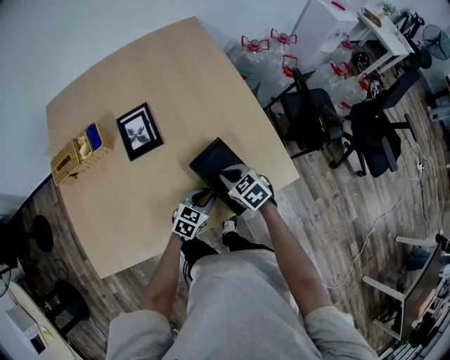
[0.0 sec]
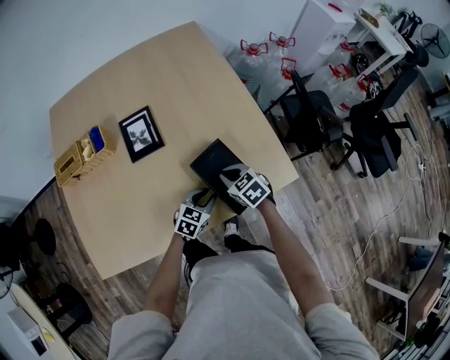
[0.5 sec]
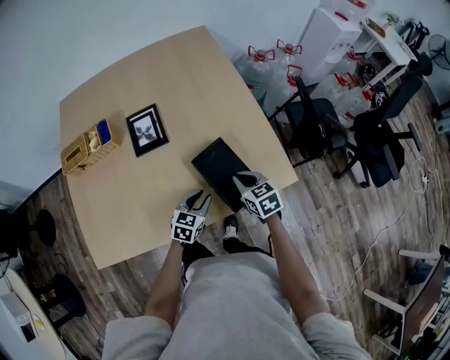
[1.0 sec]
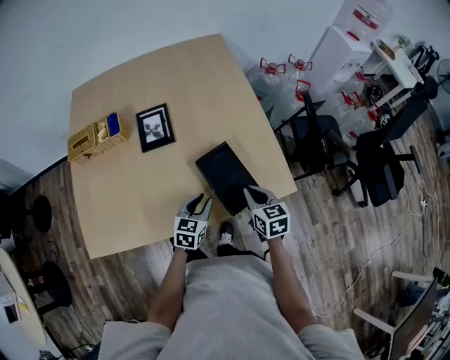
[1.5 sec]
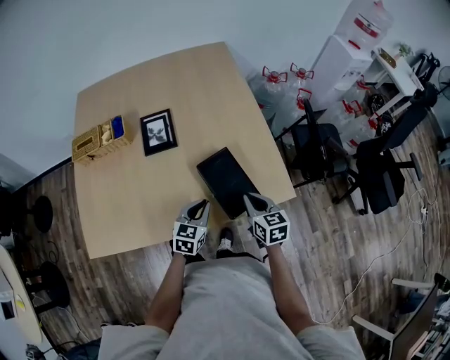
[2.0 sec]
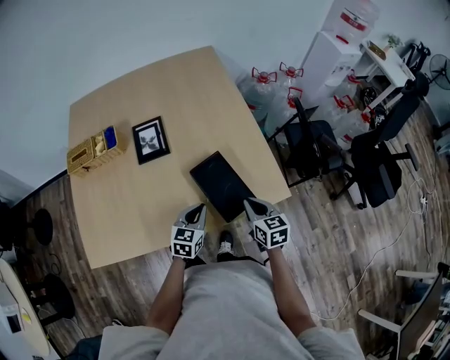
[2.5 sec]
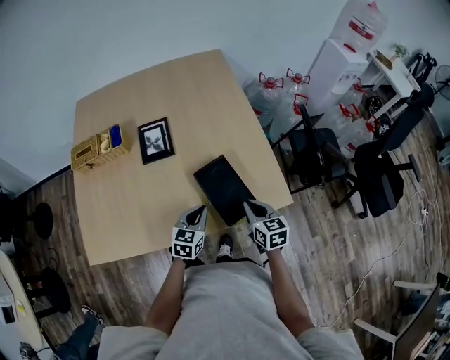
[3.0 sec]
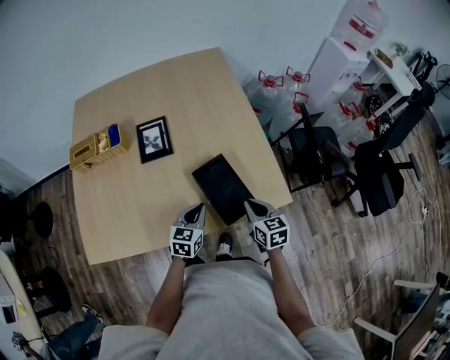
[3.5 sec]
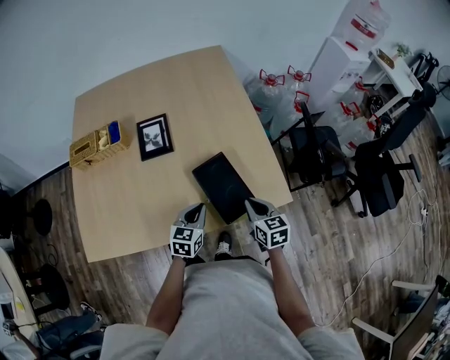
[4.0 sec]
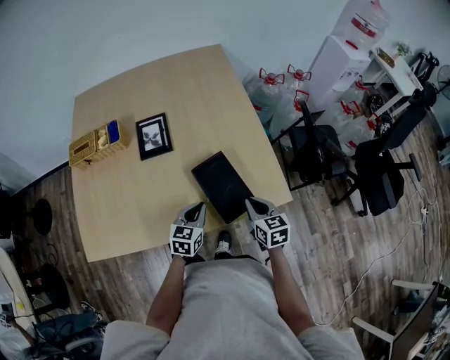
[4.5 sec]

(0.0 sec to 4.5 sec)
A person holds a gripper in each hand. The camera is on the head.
0.0 sec - 2.0 sec: The left gripper moves upward, roughly 10 cm, and rotates about 30 degrees; the right gripper is displaced to the right, backward and upward by some 10 cm, and changes its angle by roughly 30 degrees.
2.0 sec - 4.5 sec: There are only small adjustments of the grippers.

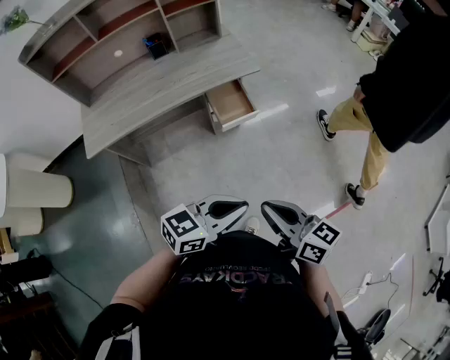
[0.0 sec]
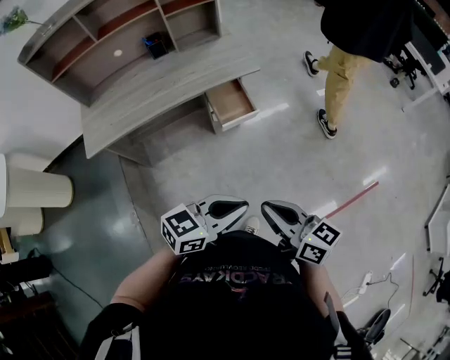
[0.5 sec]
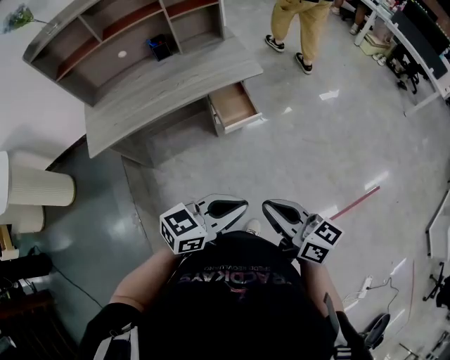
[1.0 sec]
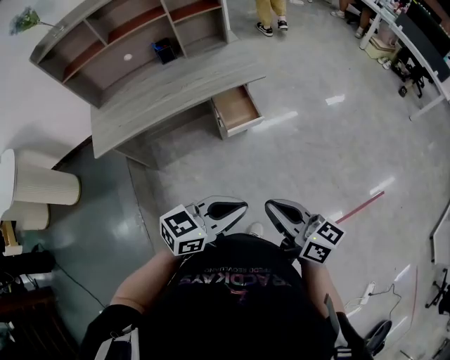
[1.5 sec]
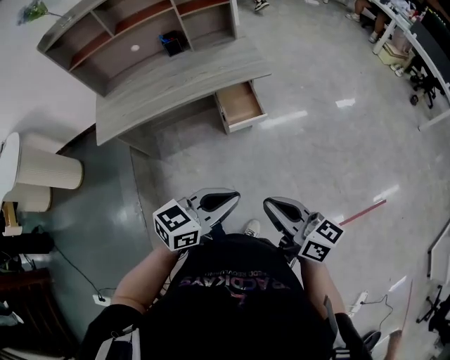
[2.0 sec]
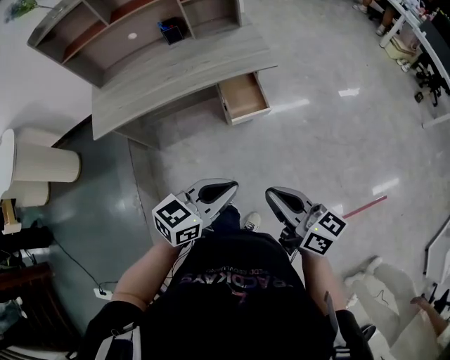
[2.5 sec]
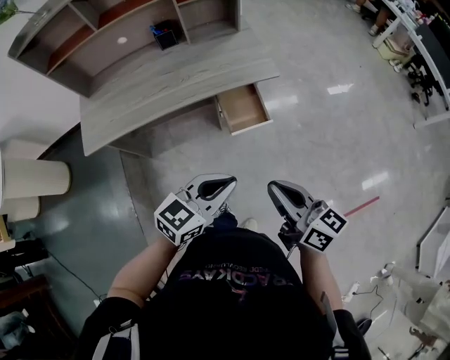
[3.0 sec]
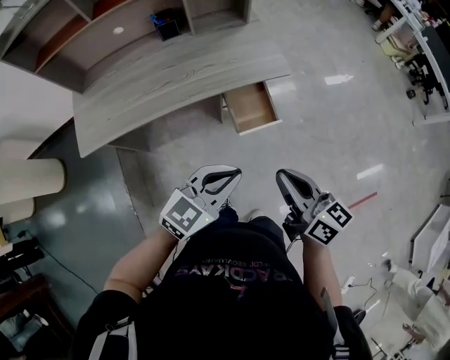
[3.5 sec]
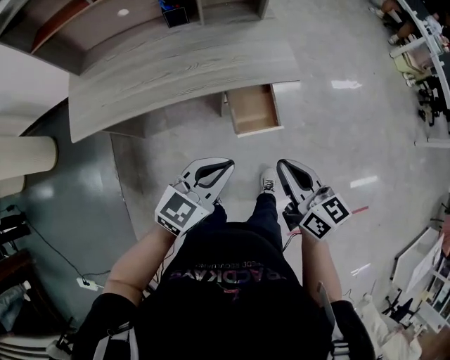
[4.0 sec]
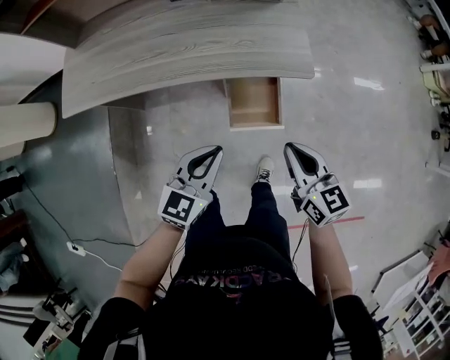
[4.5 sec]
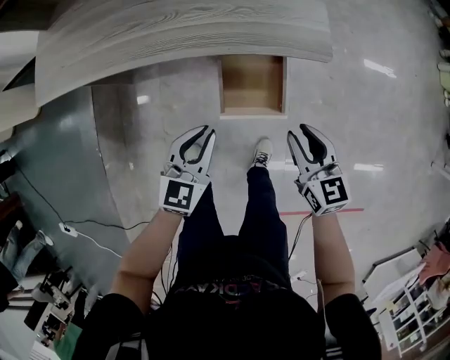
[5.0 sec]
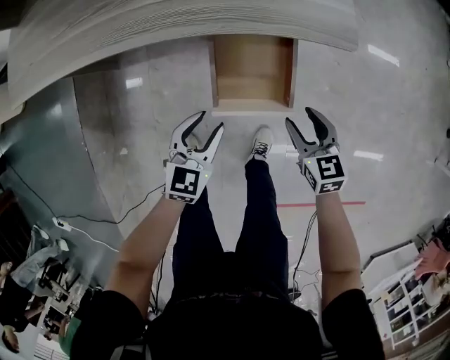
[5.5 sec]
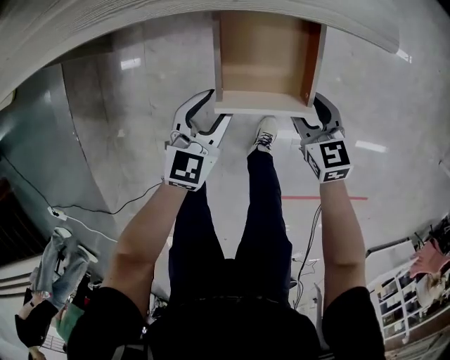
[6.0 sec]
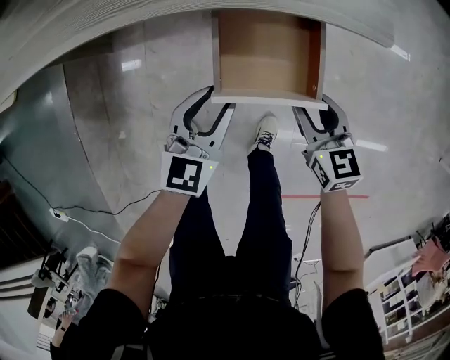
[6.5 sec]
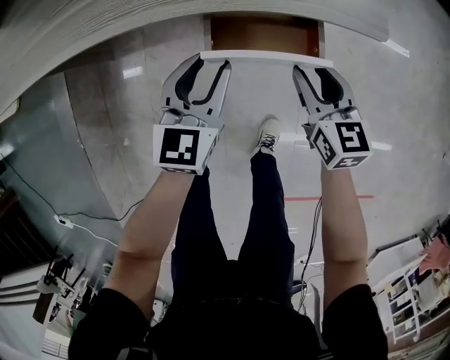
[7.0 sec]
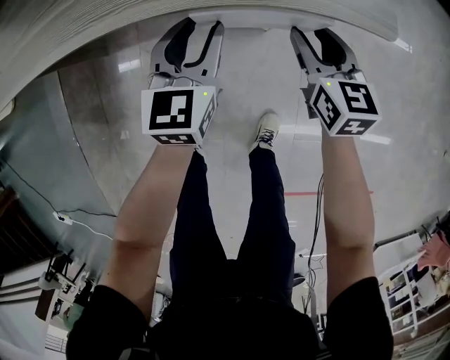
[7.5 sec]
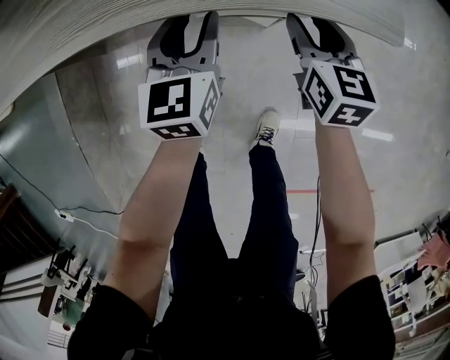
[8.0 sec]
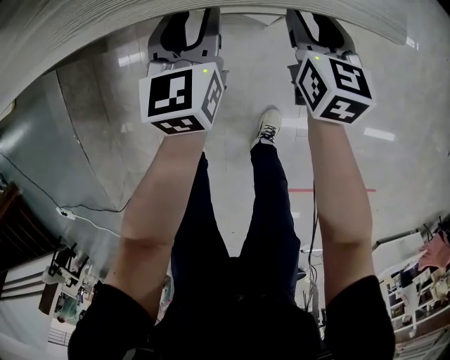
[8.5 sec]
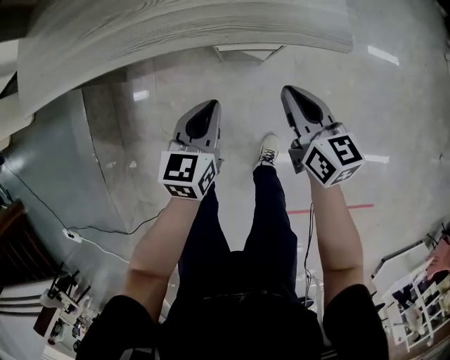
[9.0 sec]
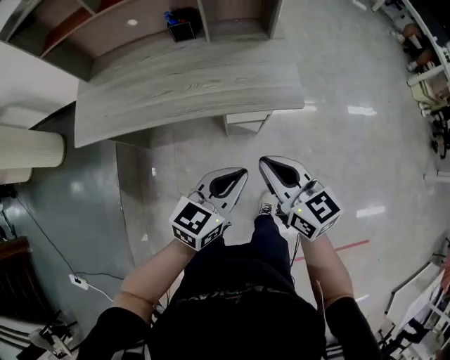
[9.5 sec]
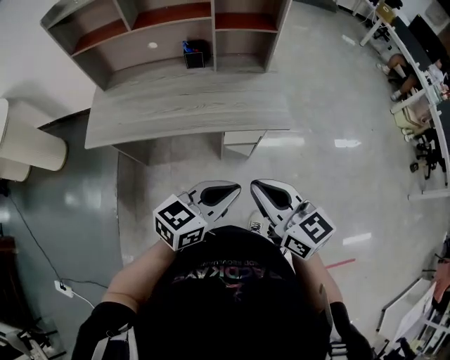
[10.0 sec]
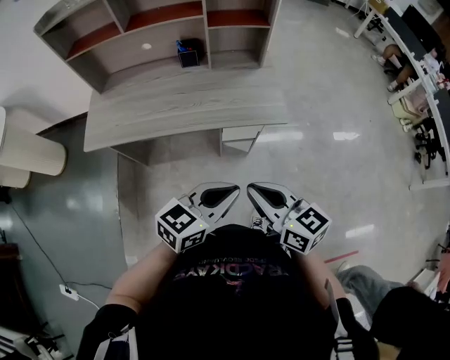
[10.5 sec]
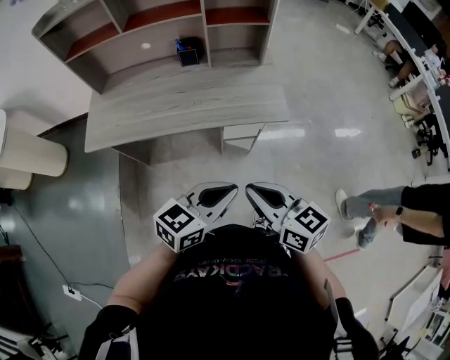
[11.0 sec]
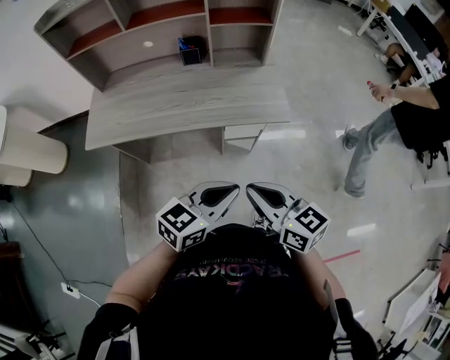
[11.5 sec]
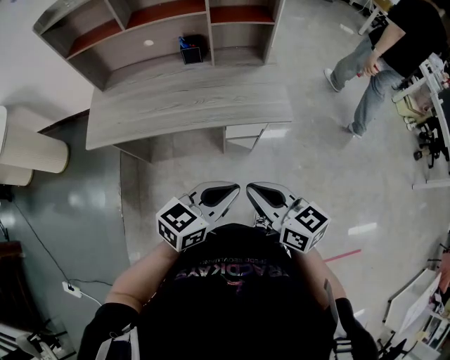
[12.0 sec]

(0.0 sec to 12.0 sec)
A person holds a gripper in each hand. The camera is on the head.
0.0 sec - 2.0 sec: The grippers stay close to where they were, moving slightly.
2.0 sec - 4.0 sec: The left gripper heads forward and to the left, covering some 20 cm. The right gripper moves forward, roughly 20 cm.
4.0 sec - 6.0 sec: Both grippers move downward, some 30 cm. The left gripper turns by some 30 degrees, and opens up. Meanwhile the right gripper swivels roughly 40 degrees, and opens its fingers.
6.0 sec - 8.0 sec: The two grippers go some 15 cm forward. The right gripper swivels approximately 20 degrees. The left gripper turns by about 20 degrees.
8.0 sec - 10.0 sec: Both grippers move upward and backward, about 40 cm. The left gripper changes its angle by about 50 degrees, and closes. The right gripper swivels roughly 30 degrees, and closes.
10.0 sec - 12.0 sec: There are only small adjustments of the grippers.

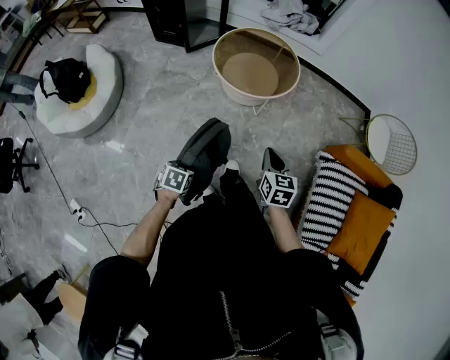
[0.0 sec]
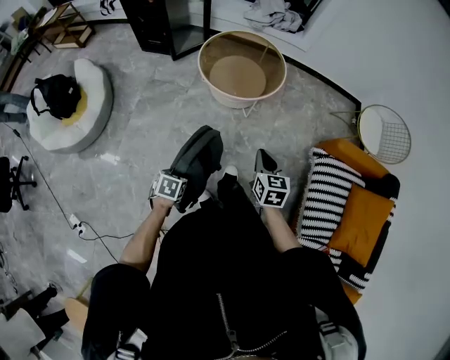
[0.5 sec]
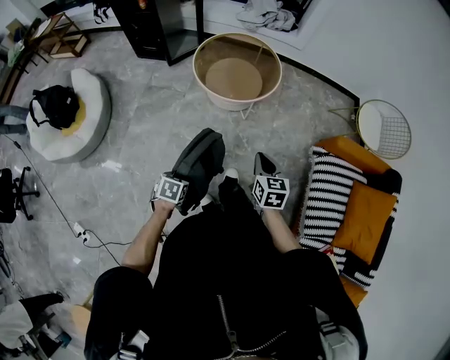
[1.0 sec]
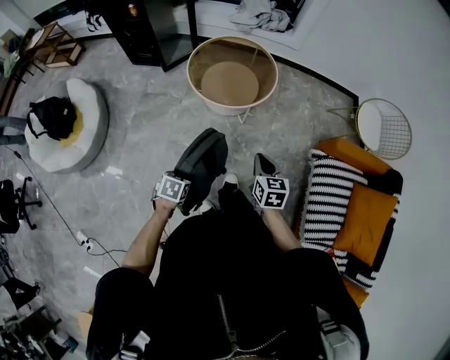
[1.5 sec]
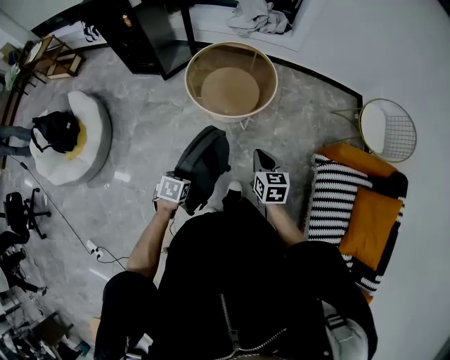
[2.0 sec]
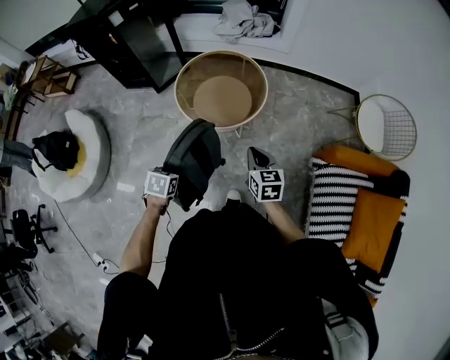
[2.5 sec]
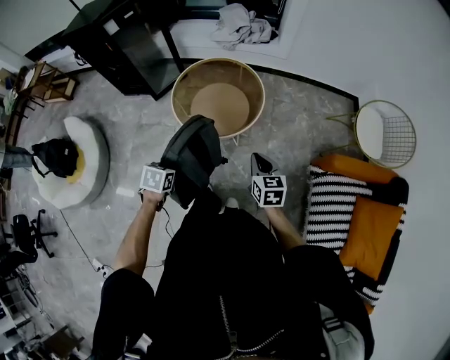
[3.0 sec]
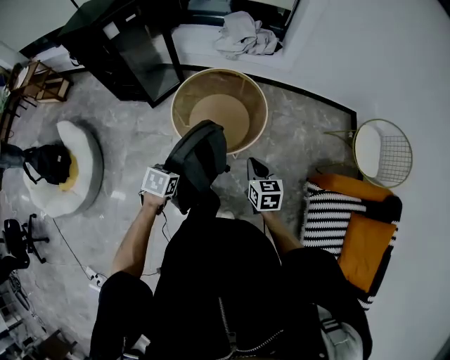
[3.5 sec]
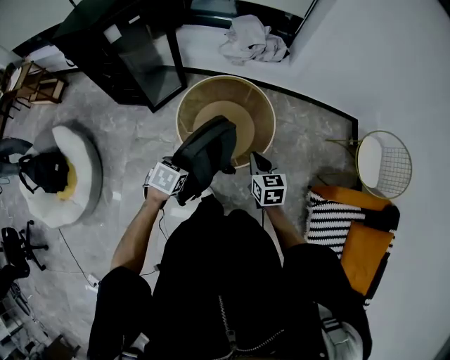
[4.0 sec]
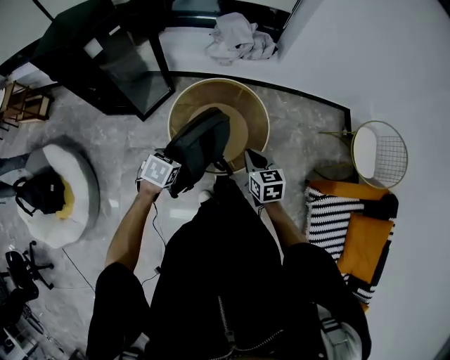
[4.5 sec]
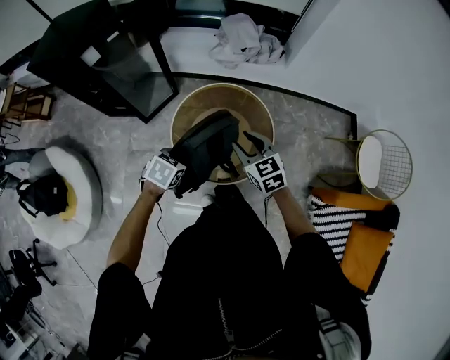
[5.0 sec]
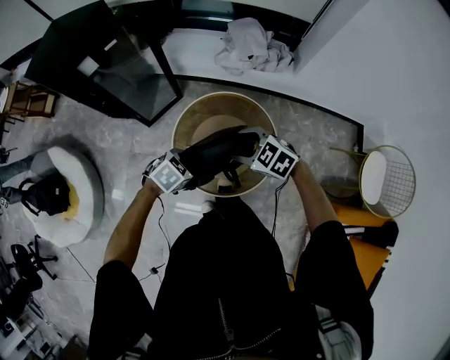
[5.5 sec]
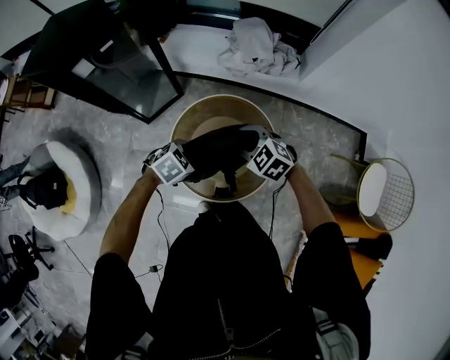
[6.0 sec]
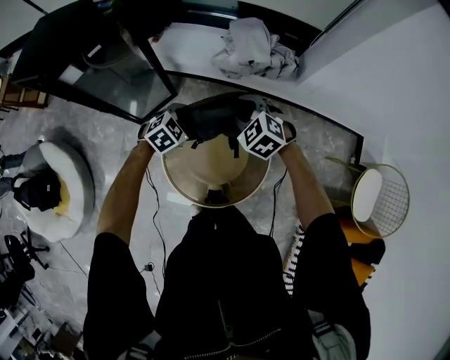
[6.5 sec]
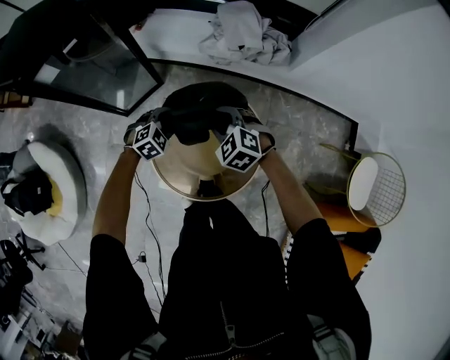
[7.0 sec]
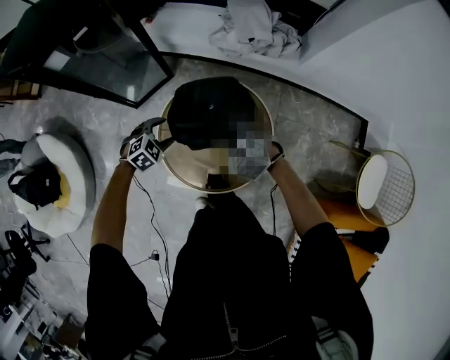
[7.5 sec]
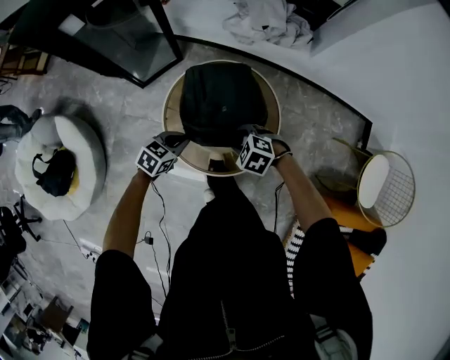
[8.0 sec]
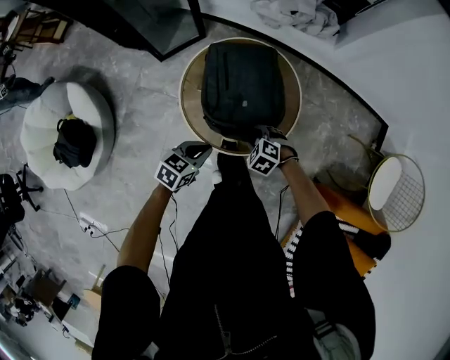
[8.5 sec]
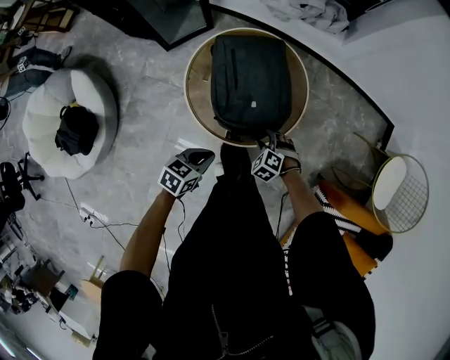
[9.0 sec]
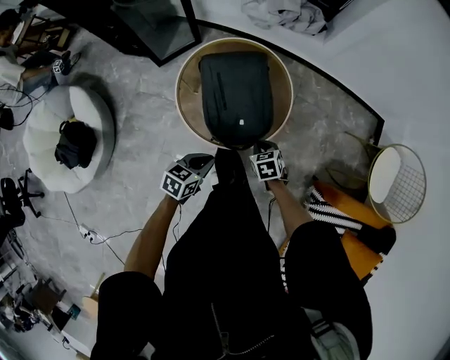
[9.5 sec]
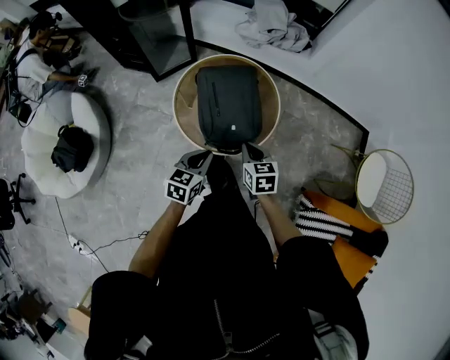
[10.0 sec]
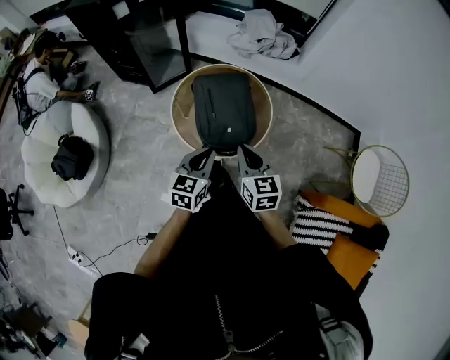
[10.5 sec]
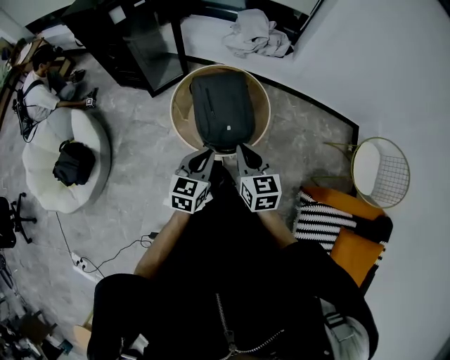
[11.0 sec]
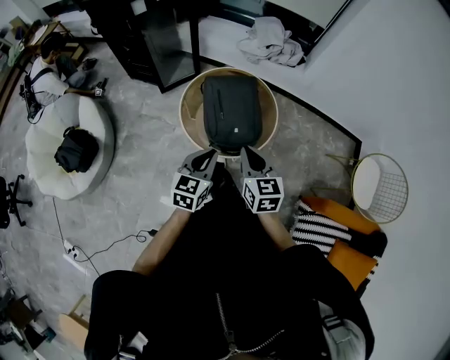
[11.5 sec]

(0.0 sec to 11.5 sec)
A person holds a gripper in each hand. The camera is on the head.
0.0 sec - 2.0 sec: The grippers both shift forward by roughly 15 cm.
2.0 sec - 4.0 sec: The two grippers go some 30 cm forward.
4.0 sec - 6.0 sec: The left gripper ends up approximately 25 cm from where it was, and swivels roughly 30 degrees. The right gripper ends up roughly 25 cm from where it was, rotates around the line of its fingers by approximately 50 degrees, counterclockwise from behind, and opens up.
6.0 sec - 7.5 sec: The left gripper is displaced downward and to the left by approximately 15 cm, travels forward and back again, some 15 cm each way, and opens up. The right gripper is displaced downward by approximately 10 cm, and moves some 15 cm forward and comes back.
7.5 sec - 9.5 sec: The left gripper changes place by some 35 cm, rolls counterclockwise, seen from behind, by about 50 degrees, and closes up, while the right gripper changes place by approximately 30 cm, rolls clockwise, seen from behind, by approximately 40 degrees, and closes up.
9.5 sec - 11.5 sec: The right gripper travels upward by roughly 25 cm, and tips its fingers upward by roughly 40 degrees. Meanwhile the left gripper is displaced upward by some 15 cm, and swivels some 30 degrees.
